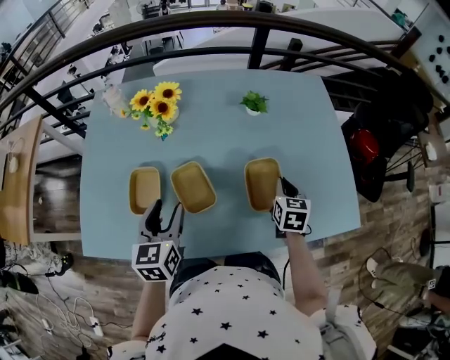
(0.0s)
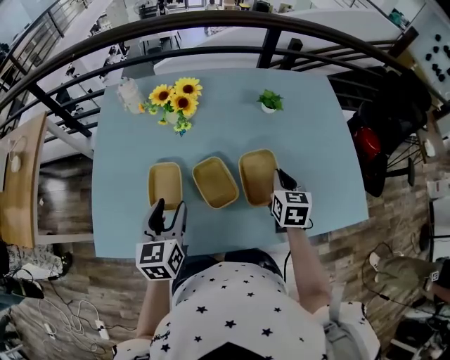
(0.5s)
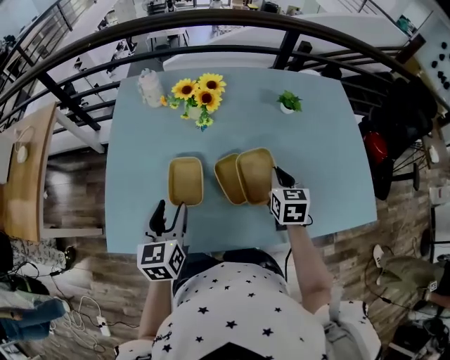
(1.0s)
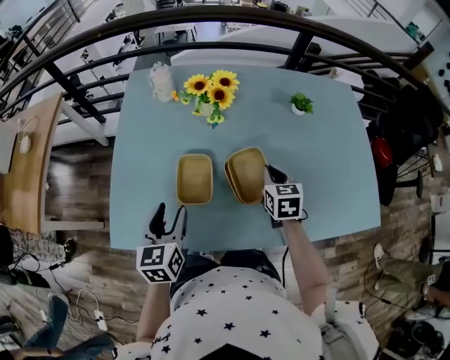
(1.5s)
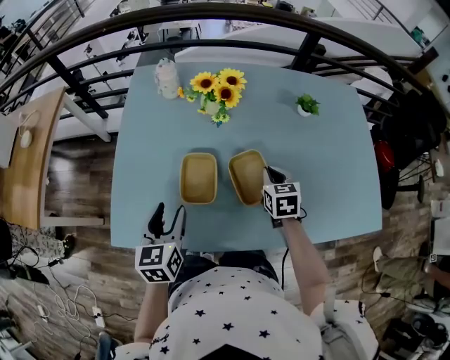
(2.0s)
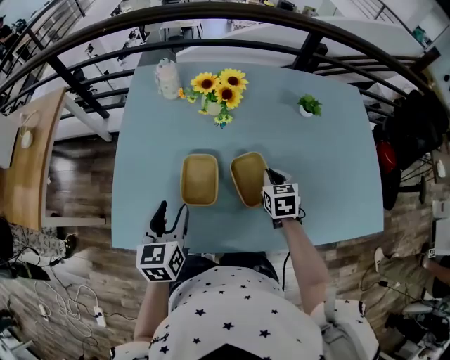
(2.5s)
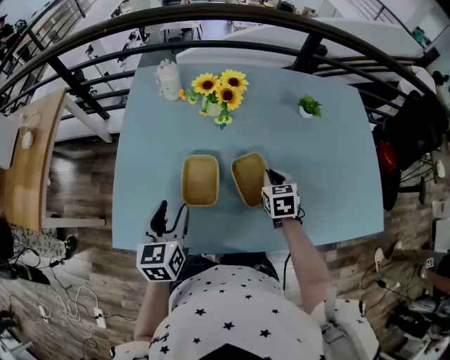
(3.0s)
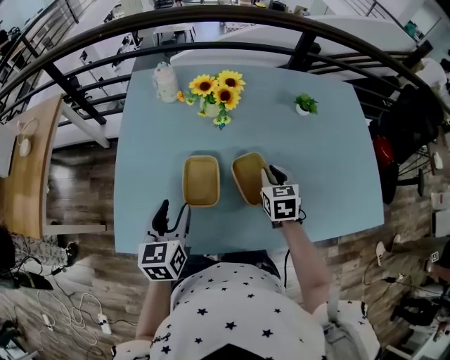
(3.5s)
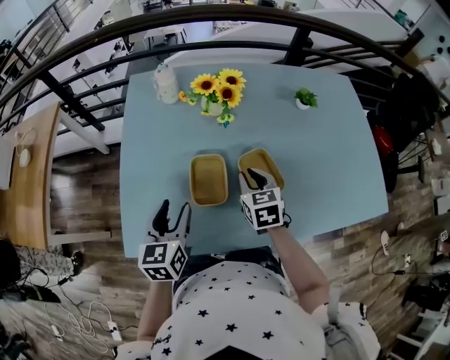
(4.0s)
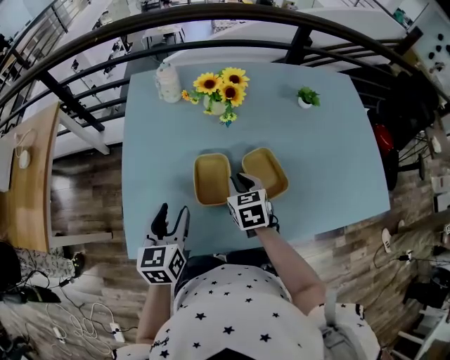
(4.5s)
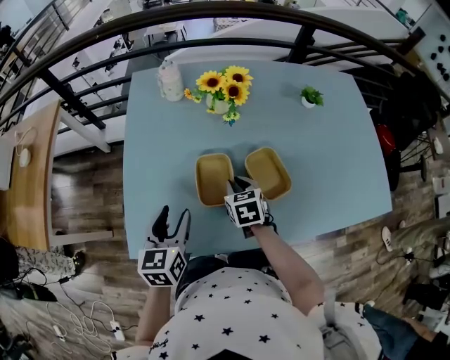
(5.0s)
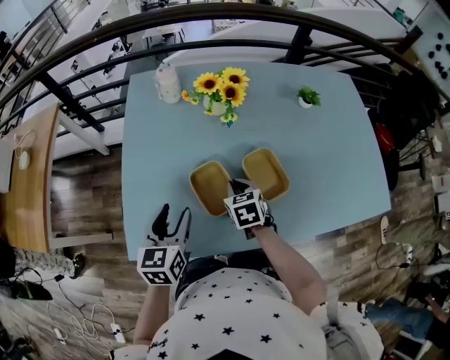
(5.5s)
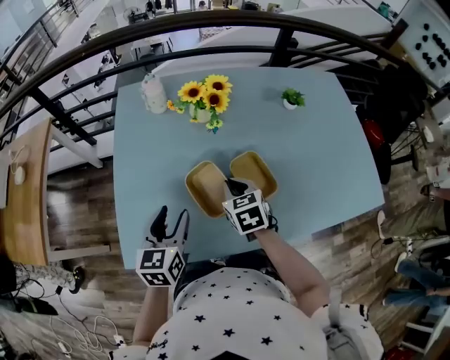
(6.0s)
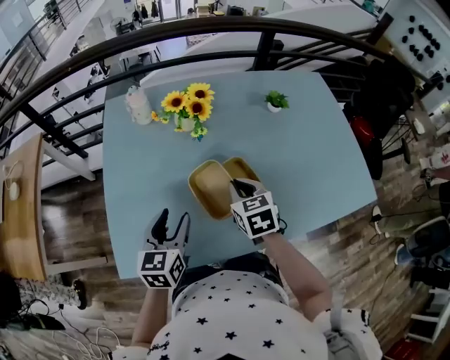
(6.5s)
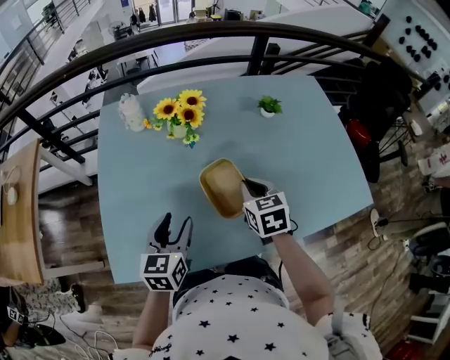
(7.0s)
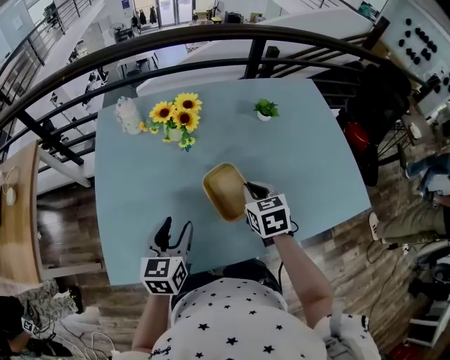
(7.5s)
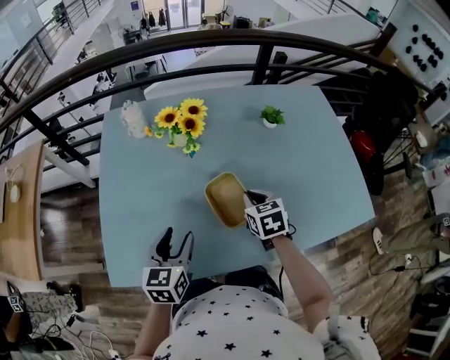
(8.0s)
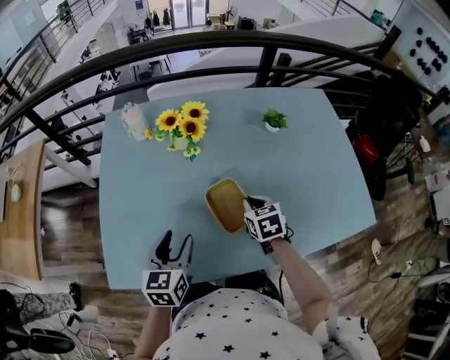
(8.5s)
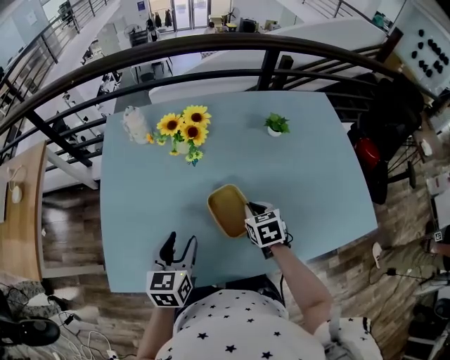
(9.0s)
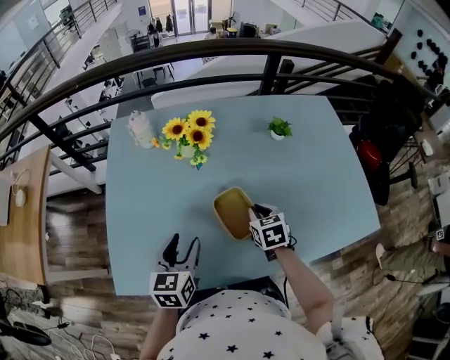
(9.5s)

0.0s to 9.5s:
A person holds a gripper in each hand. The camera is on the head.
0.0s to 2.0s: Both grippers move to the left, roughly 20 cm.
2.0s to 4.0s: The right gripper is displaced to the left by roughly 10 cm.
4.0s to 5.5s: The right gripper goes about 10 cm downward and to the left.
5.5s to 7.5s: The left gripper travels to the right by some 10 cm. Meanwhile the right gripper travels to the right and upward by roughly 20 cm.
7.5s to 9.5s: The right gripper moves downward, approximately 5 cm.

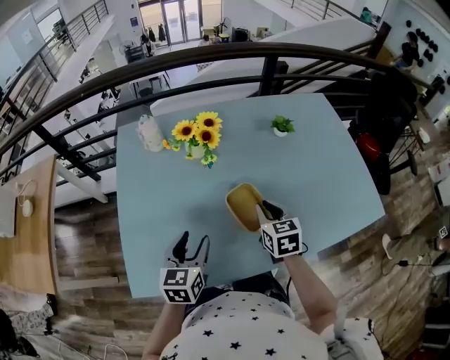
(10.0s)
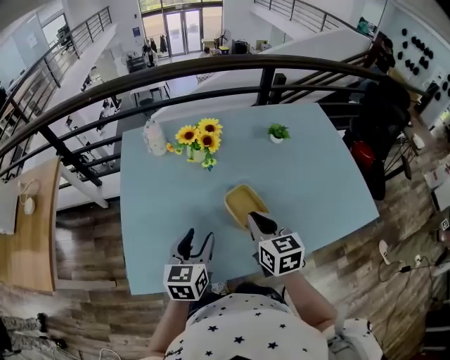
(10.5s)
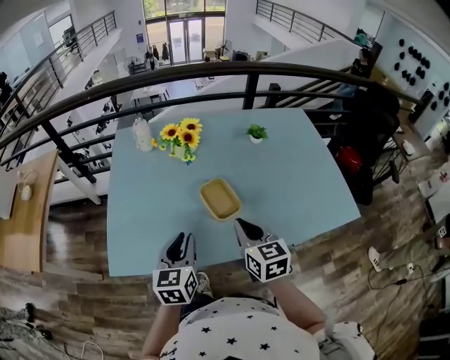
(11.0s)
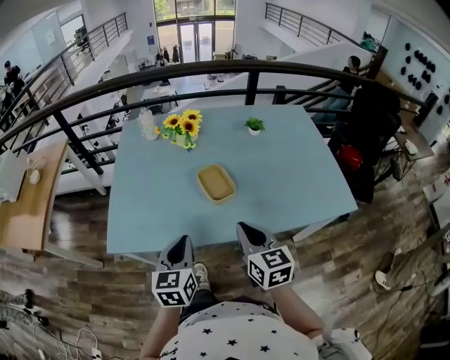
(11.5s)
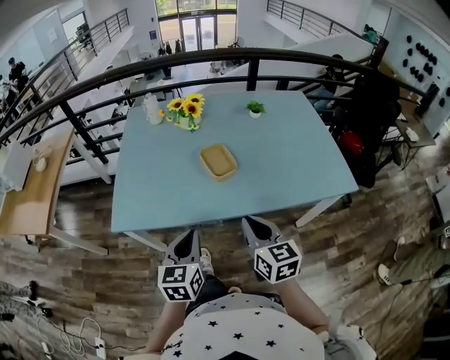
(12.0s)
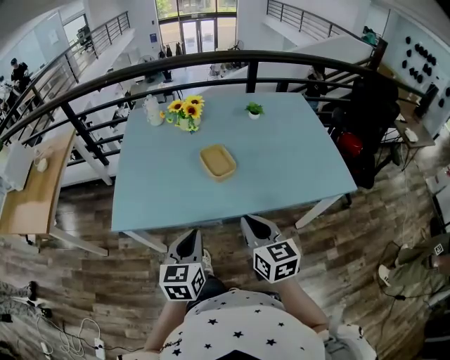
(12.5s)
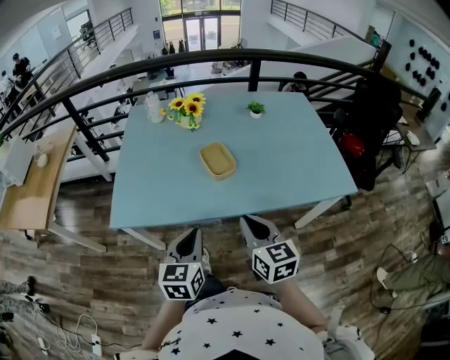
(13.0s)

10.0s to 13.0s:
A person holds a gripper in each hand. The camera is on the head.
10.0s to 11.5s: The left gripper travels backward and to the right by approximately 20 cm, and closes its fingers. Meanwhile the right gripper is displaced backward by some 25 cm, and rotates roughly 20 degrees.
11.5s to 13.0s: The two grippers go approximately 10 cm backward.

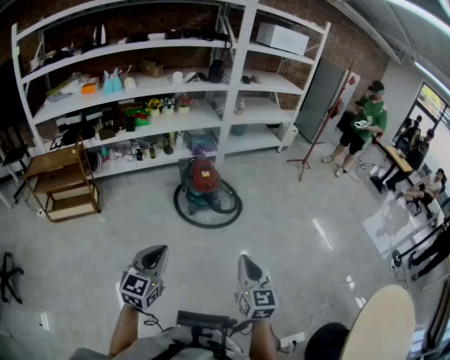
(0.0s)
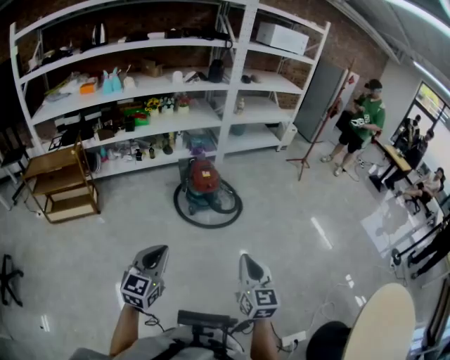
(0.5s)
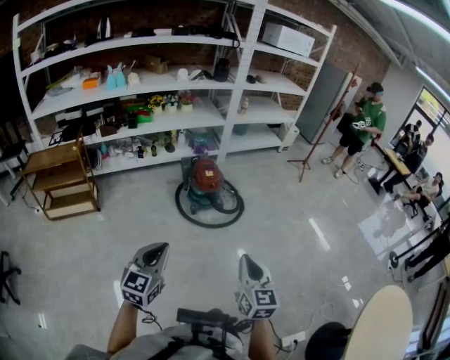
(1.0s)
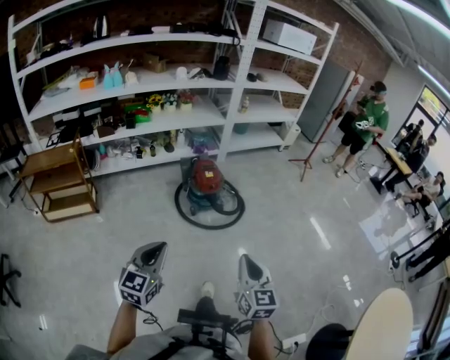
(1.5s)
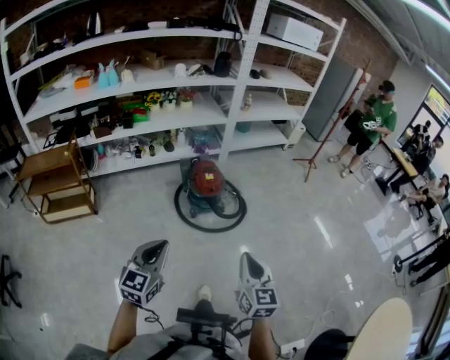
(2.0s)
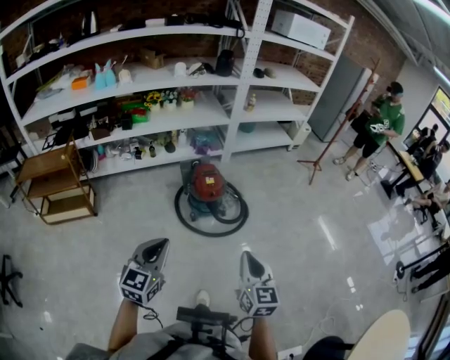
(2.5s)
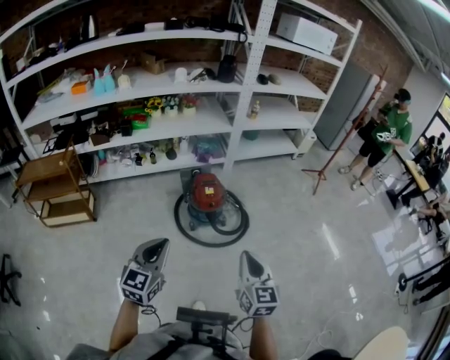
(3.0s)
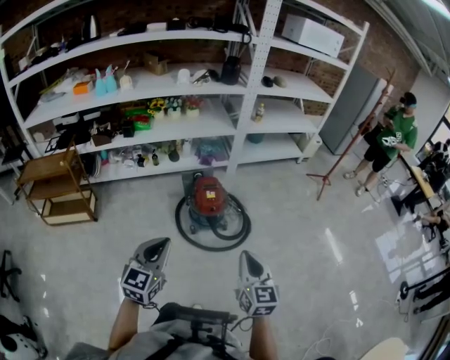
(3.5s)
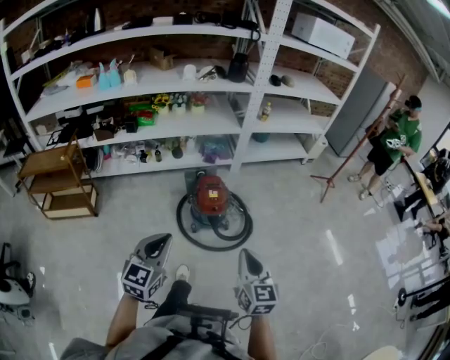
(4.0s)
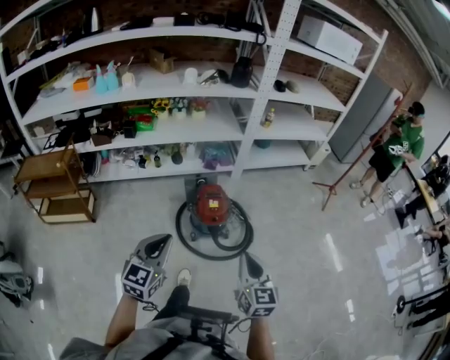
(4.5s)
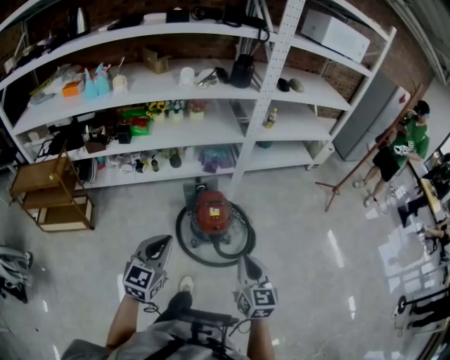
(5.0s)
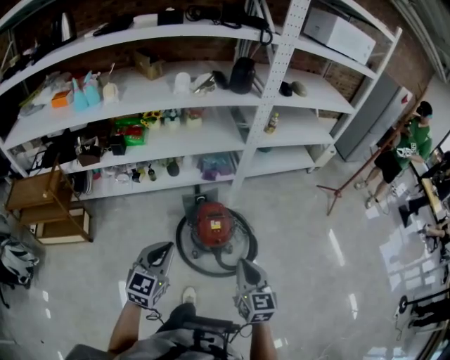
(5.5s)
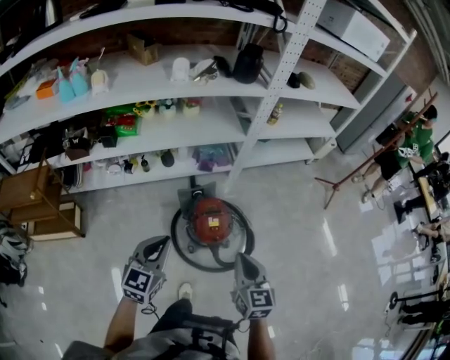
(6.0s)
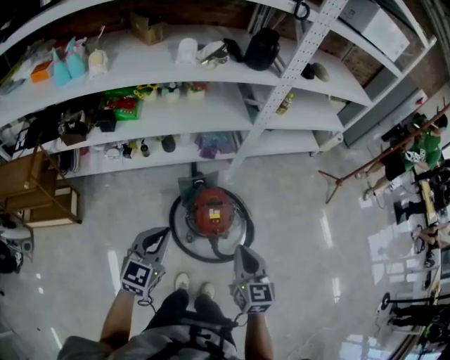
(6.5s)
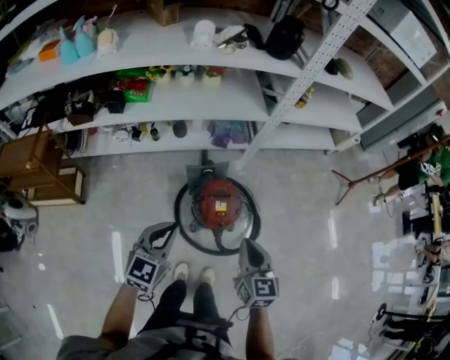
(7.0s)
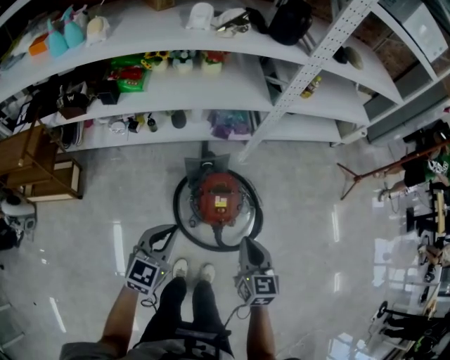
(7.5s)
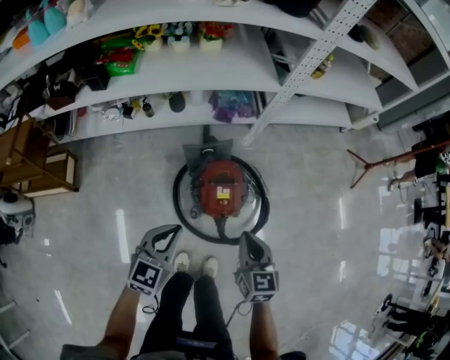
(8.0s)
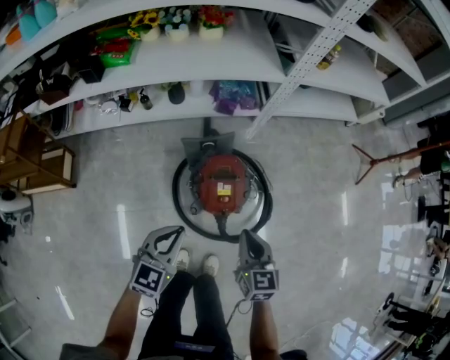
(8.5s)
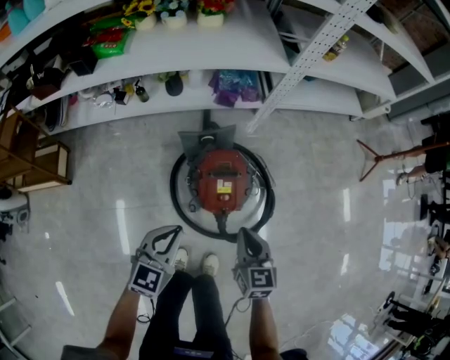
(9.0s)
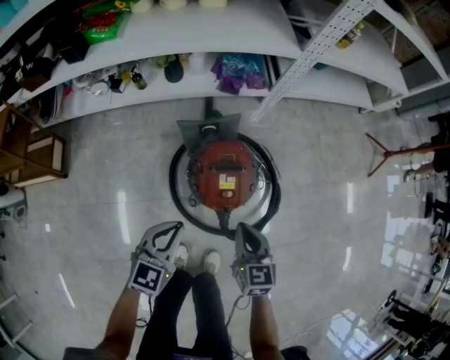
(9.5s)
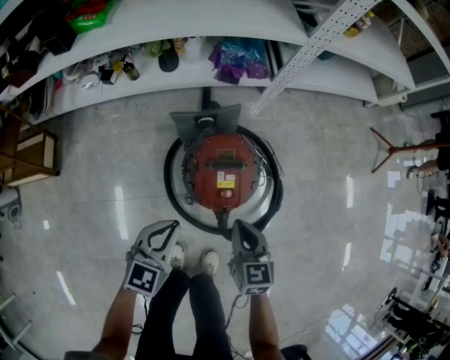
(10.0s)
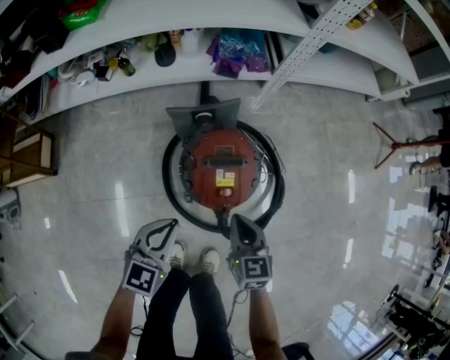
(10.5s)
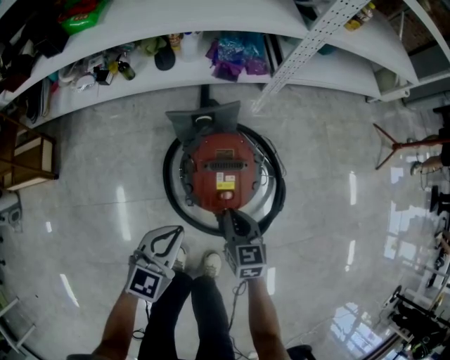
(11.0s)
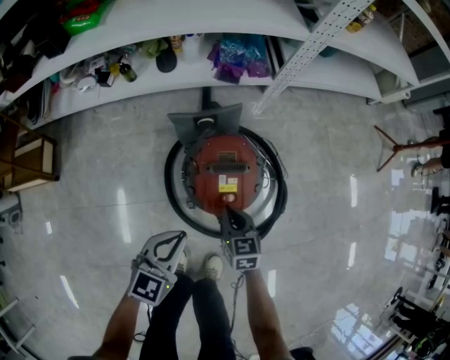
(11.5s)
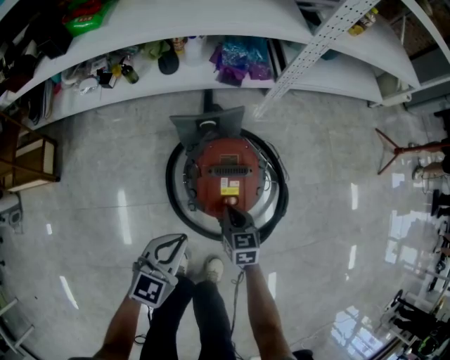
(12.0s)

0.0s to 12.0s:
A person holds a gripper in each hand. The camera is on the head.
0.0s to 2.0s: The grippers both shift forward by some 15 cm.
2.0s to 4.0s: Both grippers travel together forward, about 25 cm.
4.0s to 6.0s: The grippers both shift forward by roughly 35 cm.
6.0s to 8.0s: The left gripper shifts roughly 20 cm downward. The right gripper is displaced downward and forward by some 25 cm.
8.0s to 10.0s: Both grippers move downward, roughly 20 cm.
10.0s to 12.0s: The right gripper heads downward, covering approximately 15 cm.

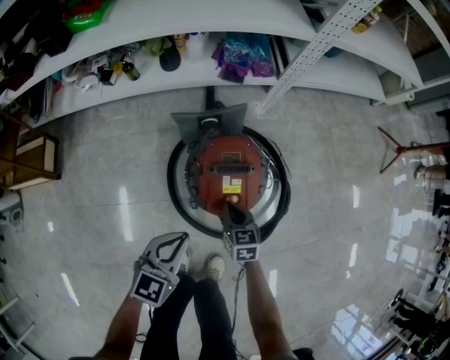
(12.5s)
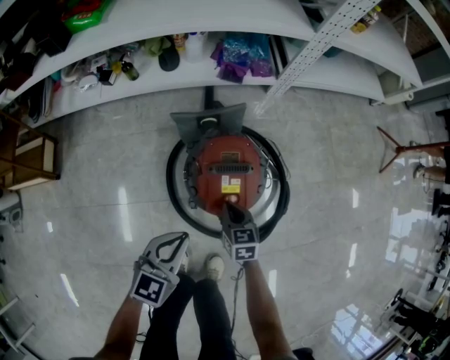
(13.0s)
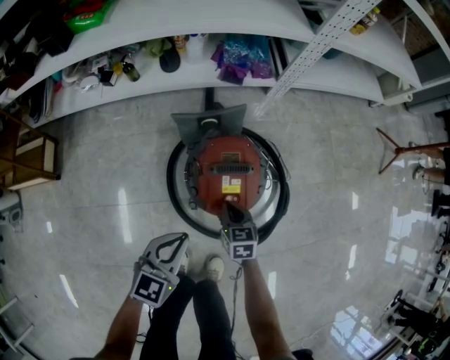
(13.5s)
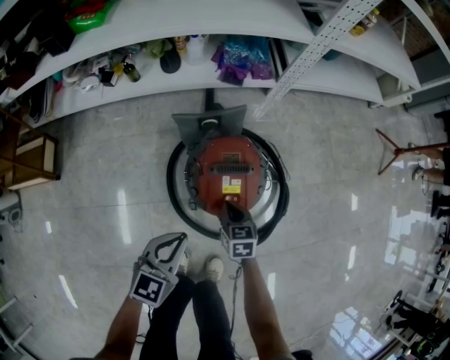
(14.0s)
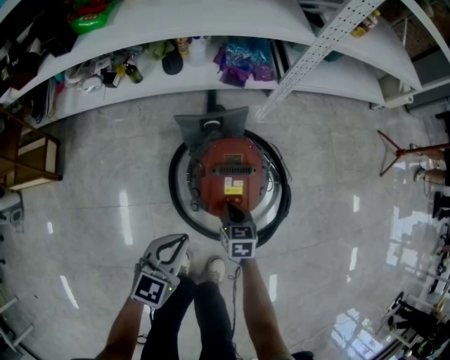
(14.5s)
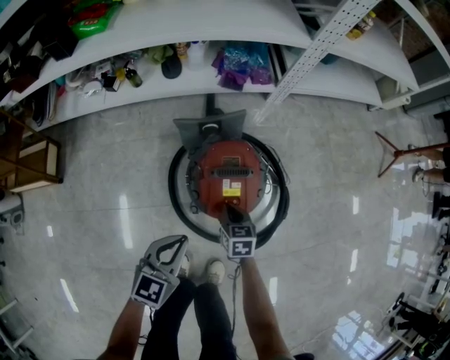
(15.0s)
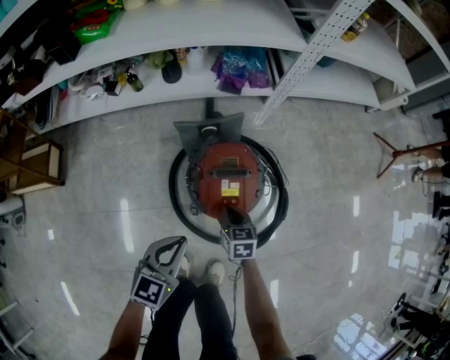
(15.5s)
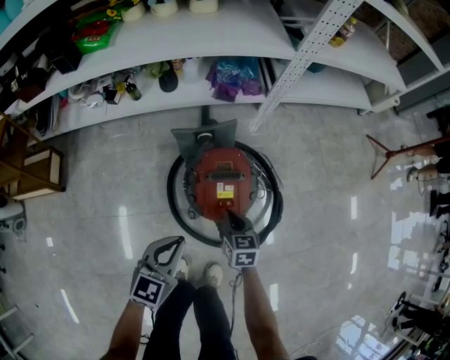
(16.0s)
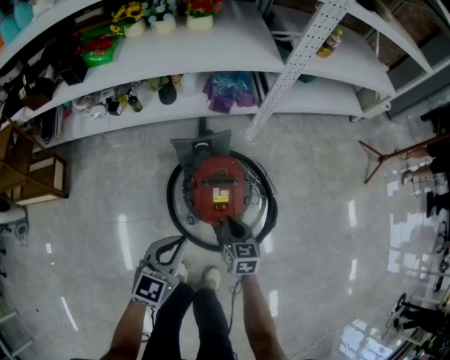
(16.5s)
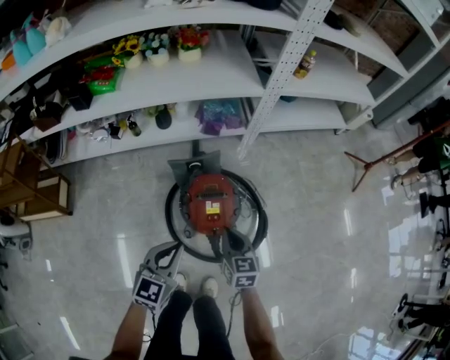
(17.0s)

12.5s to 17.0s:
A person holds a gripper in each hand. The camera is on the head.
12.5s to 14.5s: The grippers stay close to where they were, moving slightly.
14.5s to 17.0s: The grippers both shift upward by some 20 cm.
